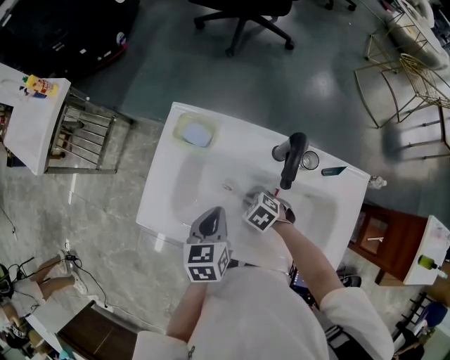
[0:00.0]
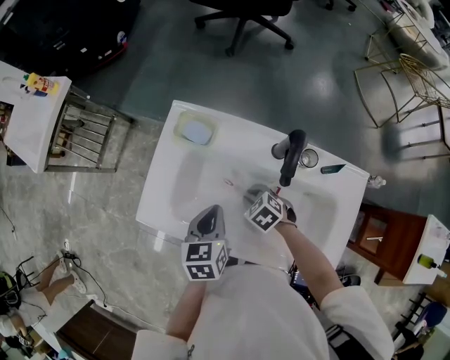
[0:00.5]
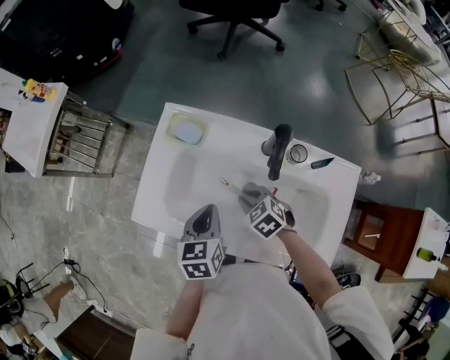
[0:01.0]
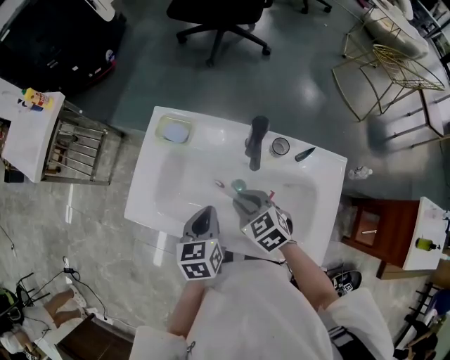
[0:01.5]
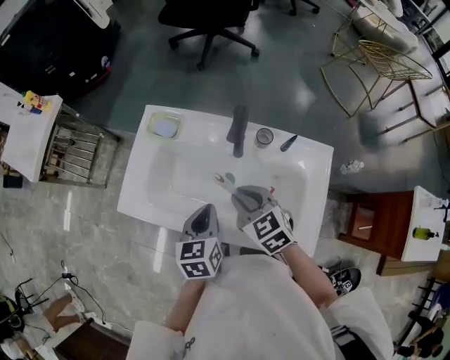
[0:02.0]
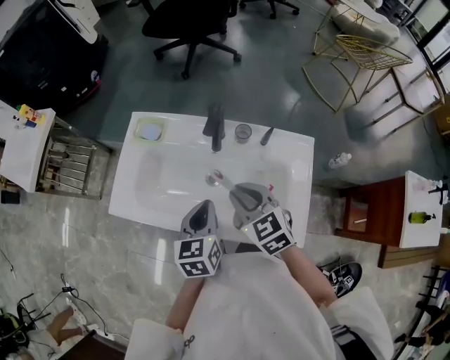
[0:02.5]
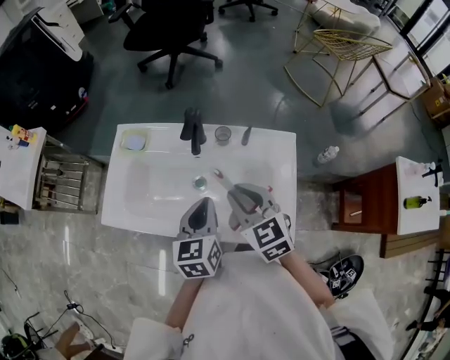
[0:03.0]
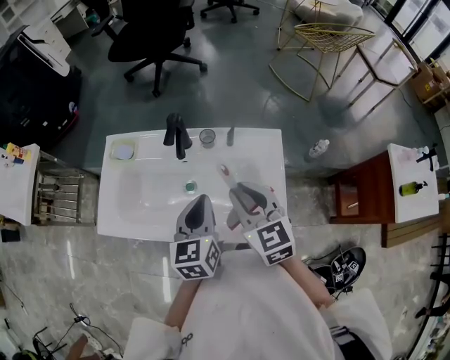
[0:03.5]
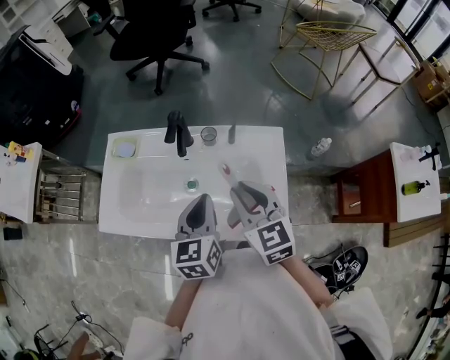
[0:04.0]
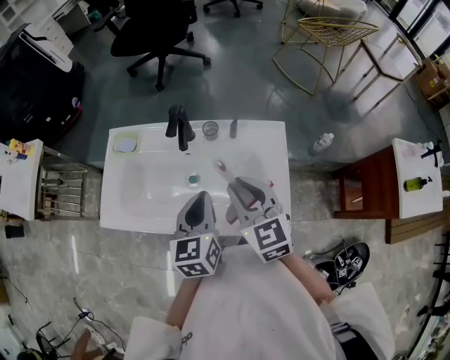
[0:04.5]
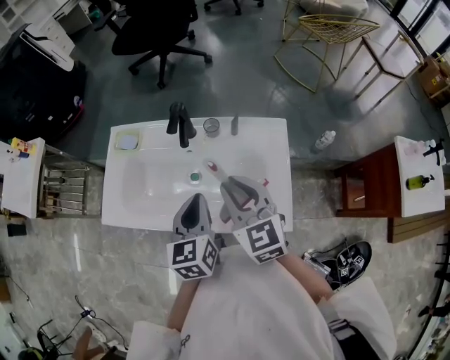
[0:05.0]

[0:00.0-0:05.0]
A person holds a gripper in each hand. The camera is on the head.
0:00.0 to 0:02.5: The left gripper goes approximately 15 cm backward, to the right and upward. Meanwhile the right gripper goes some 25 cm upward, and angles its fingers upward, by about 30 degrees.
0:02.5 to 0:05.0: The left gripper goes roughly 5 cm to the right. The right gripper heads upward and to the right, covering some 10 cm, and turns by roughly 20 degrees.

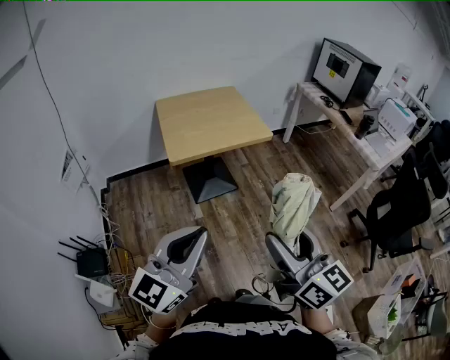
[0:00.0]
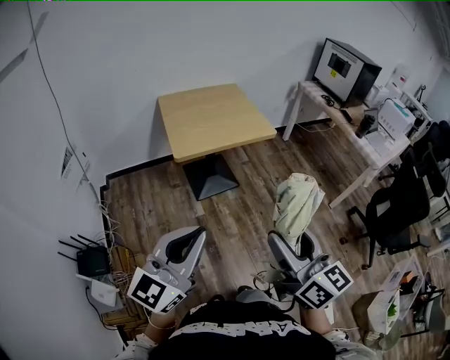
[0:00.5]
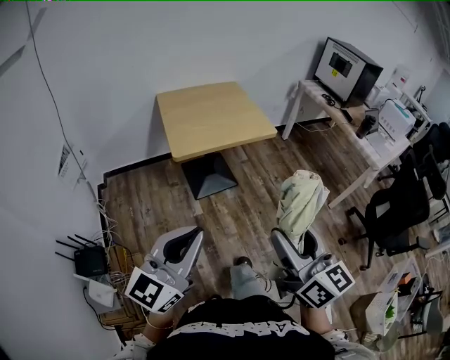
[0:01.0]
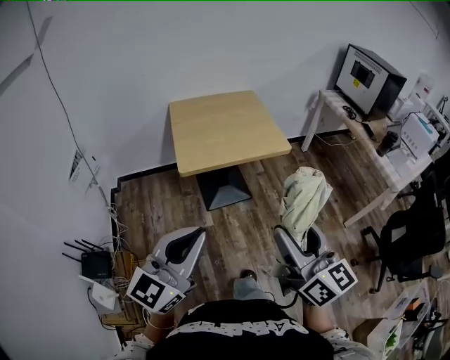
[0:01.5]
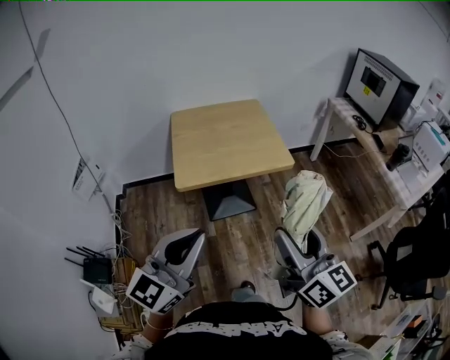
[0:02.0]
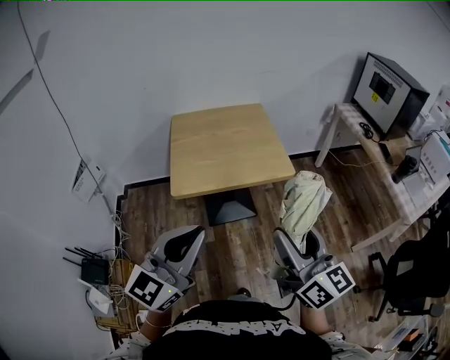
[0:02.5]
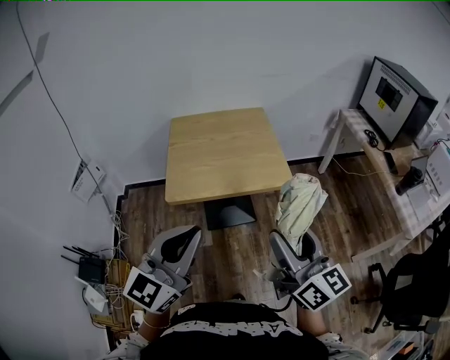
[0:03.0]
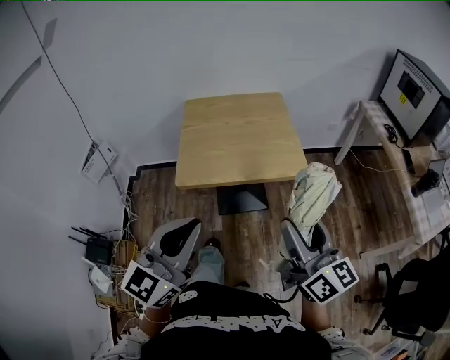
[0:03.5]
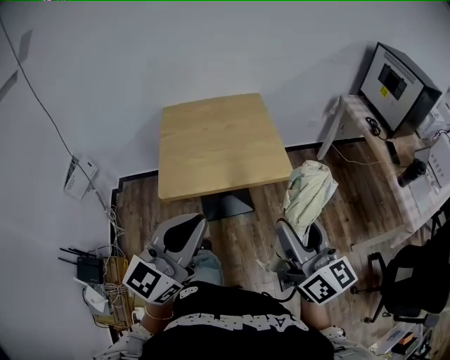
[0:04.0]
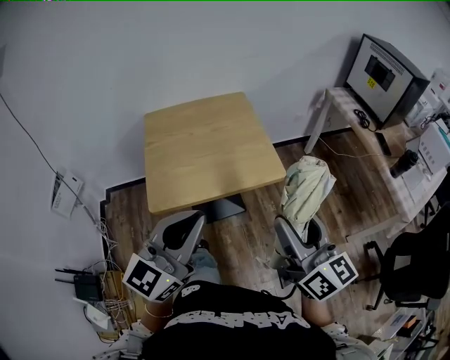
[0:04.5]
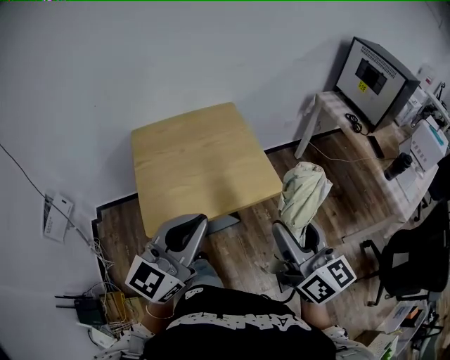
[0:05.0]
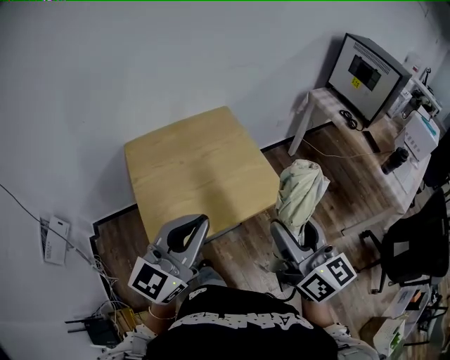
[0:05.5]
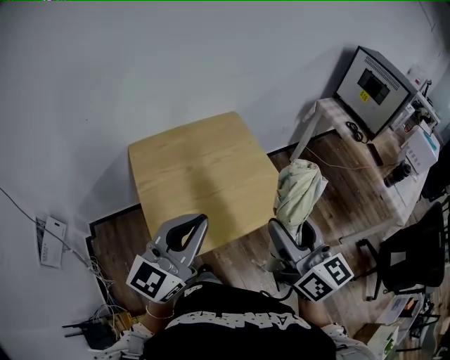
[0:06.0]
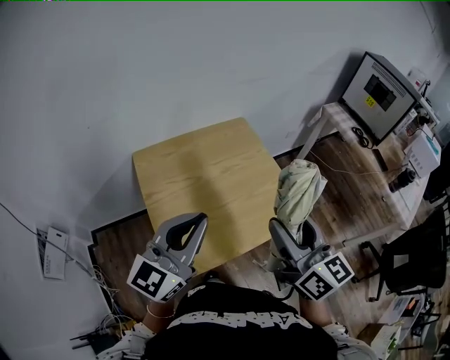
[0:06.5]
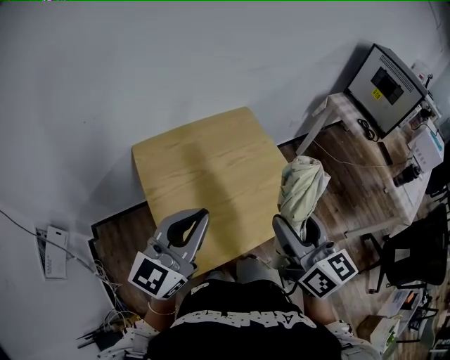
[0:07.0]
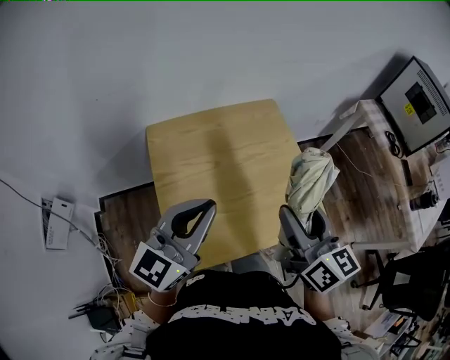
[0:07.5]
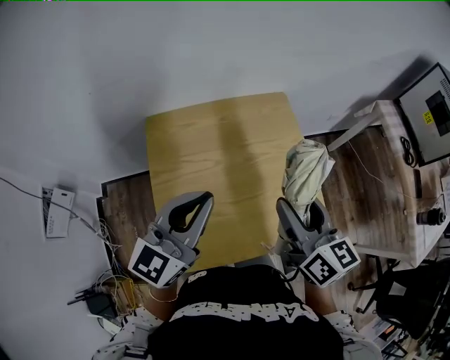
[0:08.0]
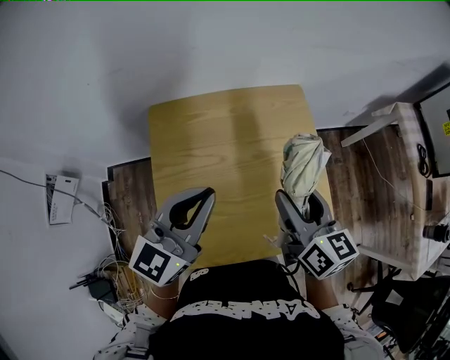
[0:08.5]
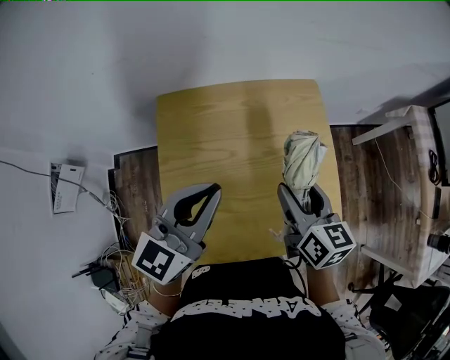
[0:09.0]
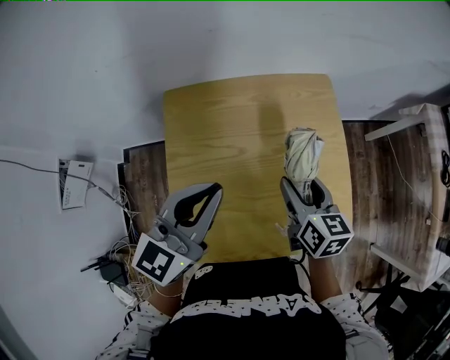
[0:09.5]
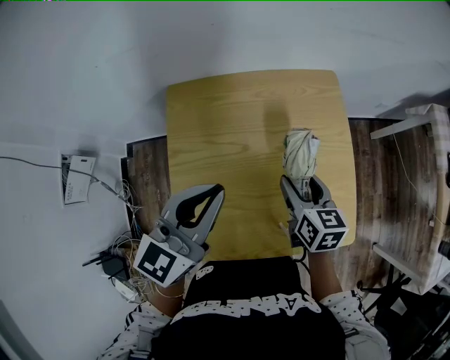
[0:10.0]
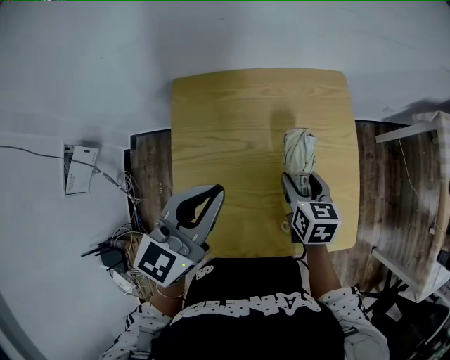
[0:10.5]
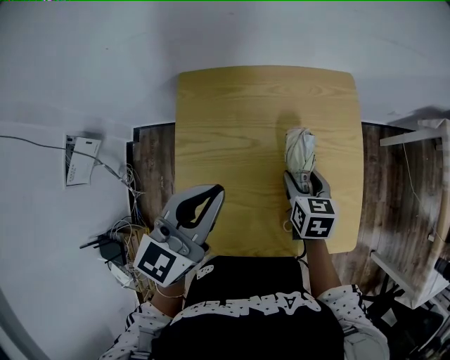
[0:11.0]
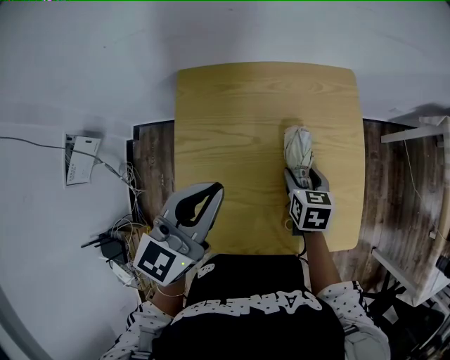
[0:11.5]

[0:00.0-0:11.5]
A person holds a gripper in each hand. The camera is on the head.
0:00.0 to 0:02.0: Both grippers travel together forward, approximately 20 cm.
0:02.0 to 0:04.0: The two grippers go some 15 cm forward and to the right.
0:04.0 to 0:06.0: Both grippers travel together forward and to the left, some 25 cm.
0:06.0 to 0:07.5: The right gripper travels forward, to the left and downward by some 15 cm. Meanwhile the left gripper is displaced forward and to the left by about 15 cm.
0:07.5 to 0:09.5: The left gripper travels forward and downward by roughly 10 cm, while the right gripper heads downward and forward, covering approximately 25 cm, and changes its angle by about 20 degrees.
0:09.5 to 0:11.5: The right gripper travels downward by about 10 cm, and turns by approximately 20 degrees.

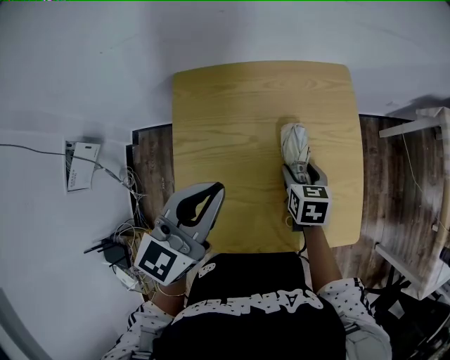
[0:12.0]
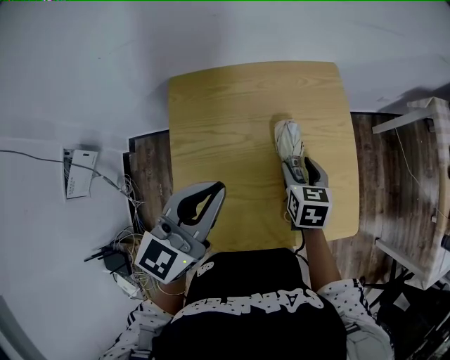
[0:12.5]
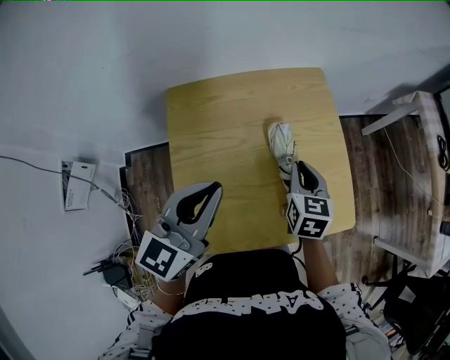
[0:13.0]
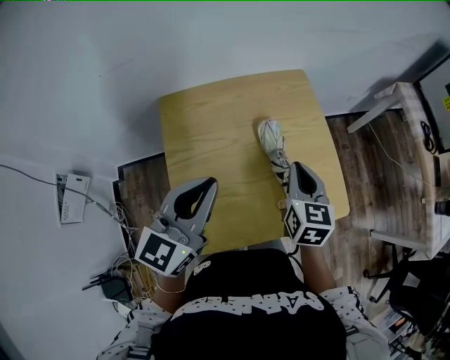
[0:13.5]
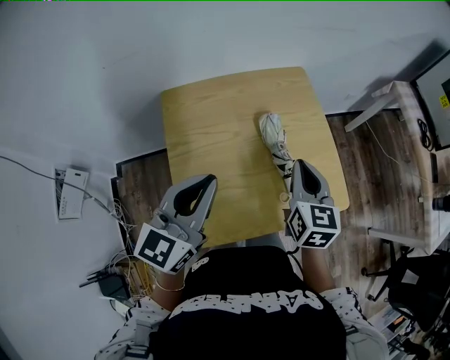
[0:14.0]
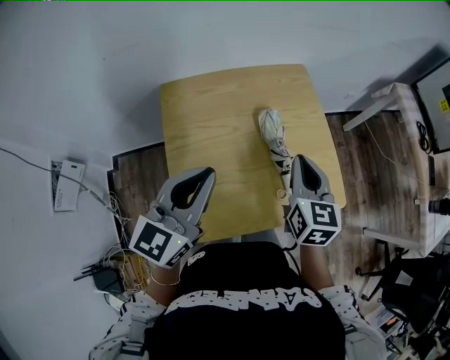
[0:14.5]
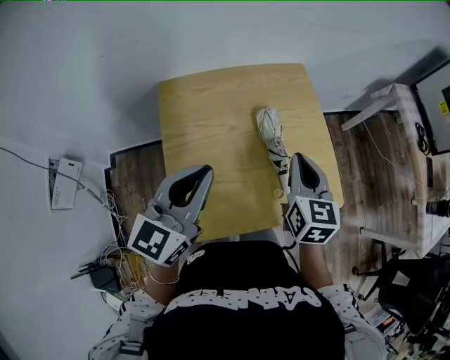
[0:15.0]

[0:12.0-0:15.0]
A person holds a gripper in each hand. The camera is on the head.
0:12.0 to 0:13.5: The left gripper ends up some 5 cm from where it was. Meanwhile the right gripper heads upward, covering roughly 15 cm, changes its angle by roughly 30 degrees, and closes up.
0:13.5 to 0:15.0: There are only small adjustments of the grippers.

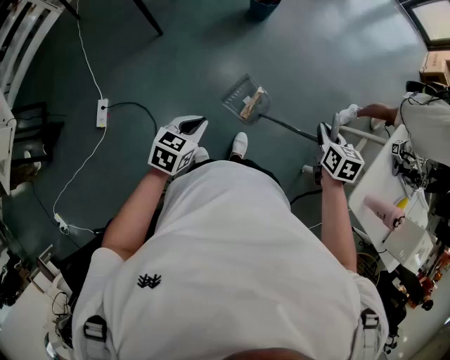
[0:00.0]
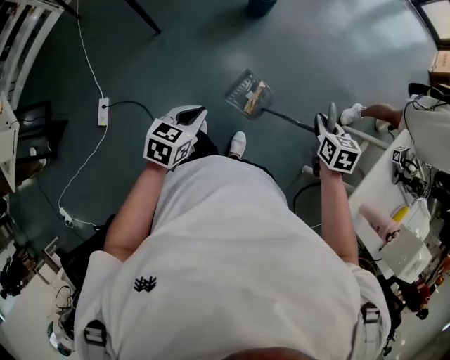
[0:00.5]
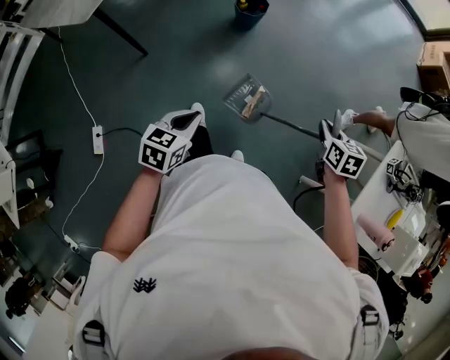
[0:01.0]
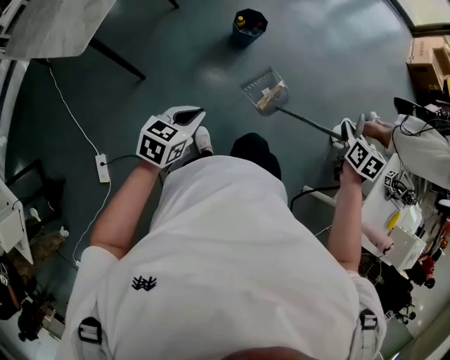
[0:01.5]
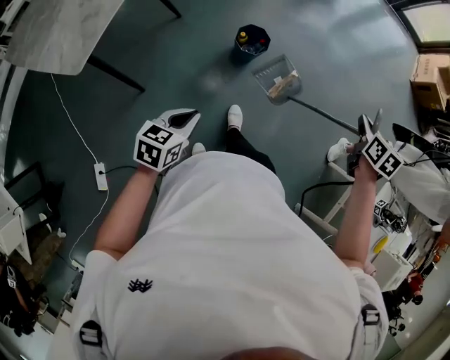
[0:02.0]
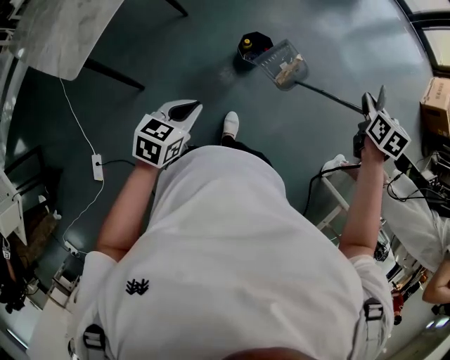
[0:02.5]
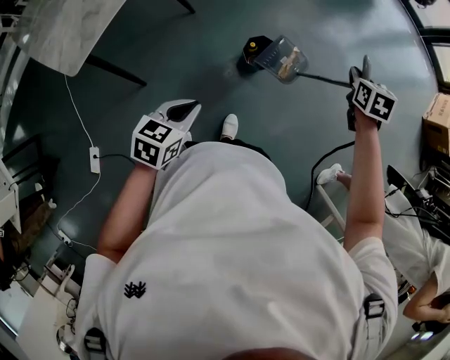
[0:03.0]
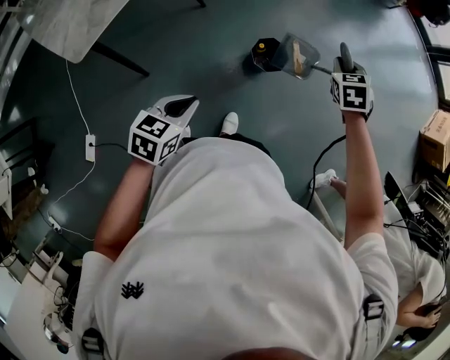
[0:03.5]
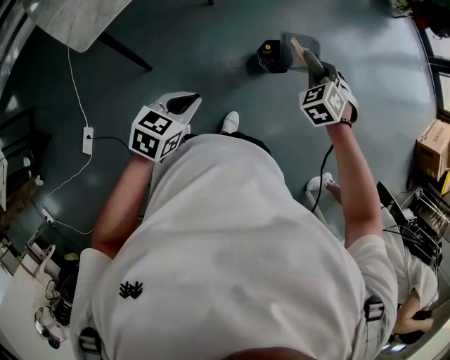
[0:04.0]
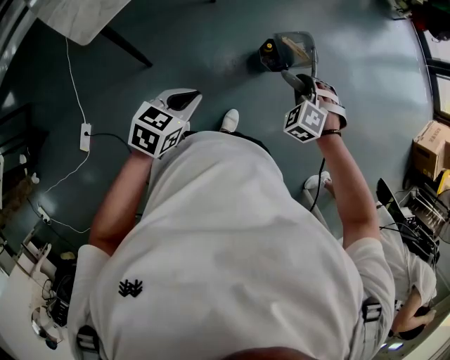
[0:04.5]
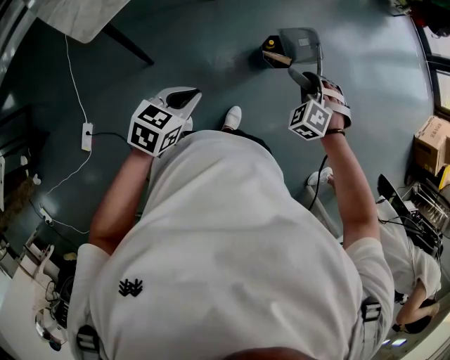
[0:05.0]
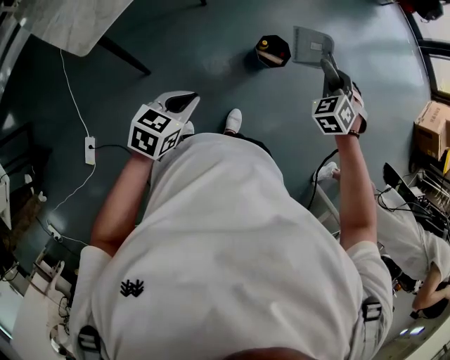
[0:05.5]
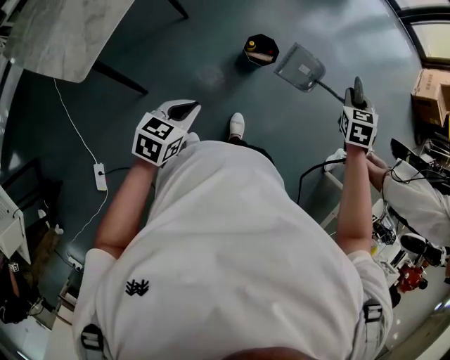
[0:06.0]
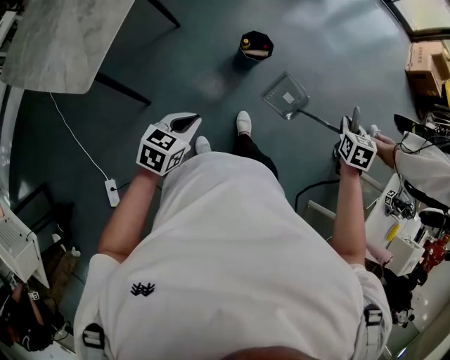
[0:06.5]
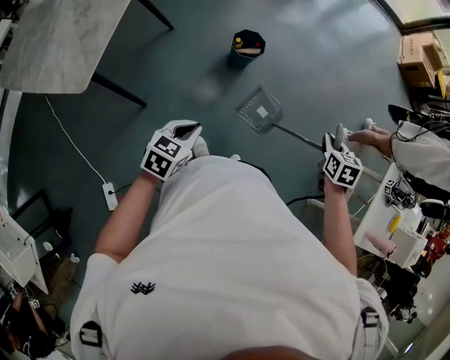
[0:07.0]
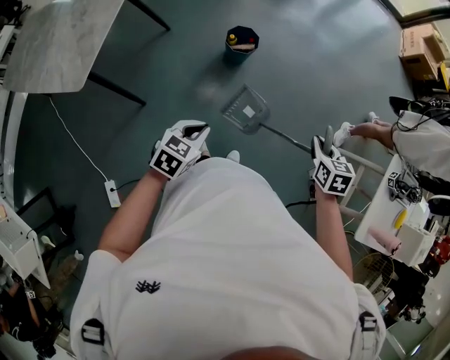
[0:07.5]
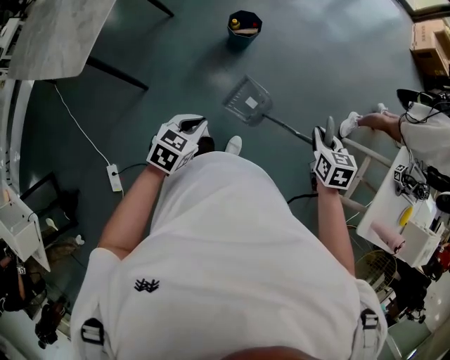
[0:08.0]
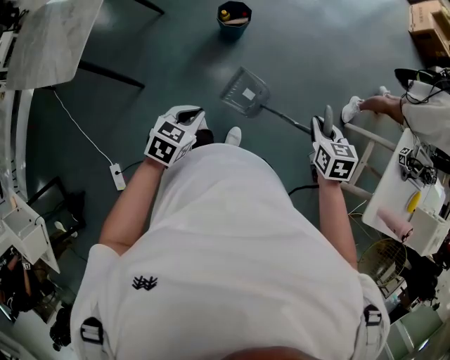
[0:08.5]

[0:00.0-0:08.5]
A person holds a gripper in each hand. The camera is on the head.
0:00.0 to 0:02.0: Both grippers are carried forward, about 50 cm.
0:02.0 to 0:04.0: The left gripper is displaced forward and to the left by roughly 15 cm; the right gripper travels to the left and forward by some 40 cm, and rotates around the line of its fingers by roughly 80 degrees, counterclockwise from behind.
0:04.0 to 0:06.5: The right gripper changes place by about 35 cm, and rolls clockwise, seen from behind, by about 70 degrees, while the left gripper changes place by about 15 cm, and changes its angle by roughly 20 degrees.
0:06.5 to 0:08.5: The left gripper heads to the right, covering approximately 20 cm; the right gripper heads backward and to the right, covering roughly 20 cm.
